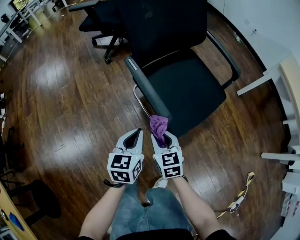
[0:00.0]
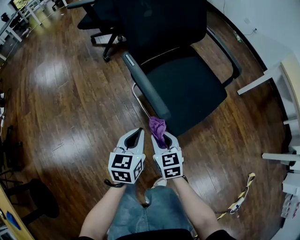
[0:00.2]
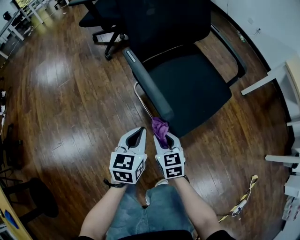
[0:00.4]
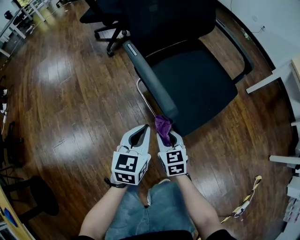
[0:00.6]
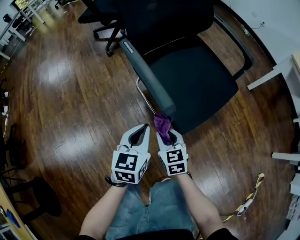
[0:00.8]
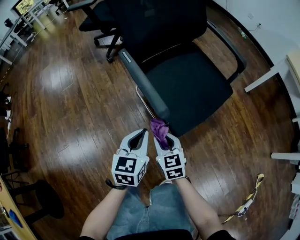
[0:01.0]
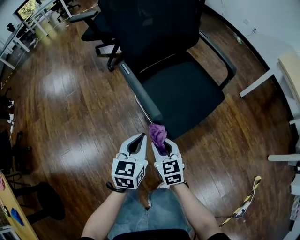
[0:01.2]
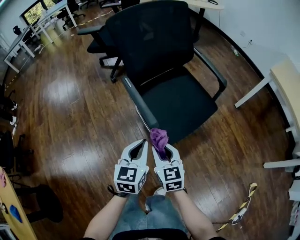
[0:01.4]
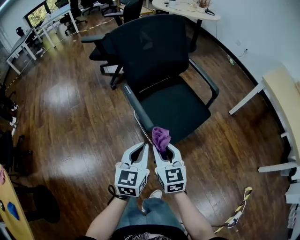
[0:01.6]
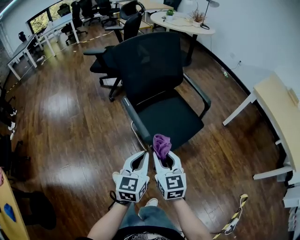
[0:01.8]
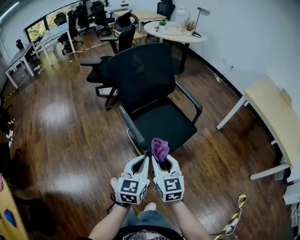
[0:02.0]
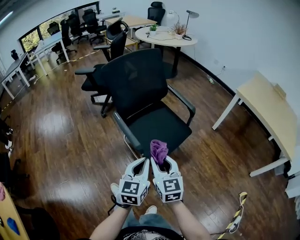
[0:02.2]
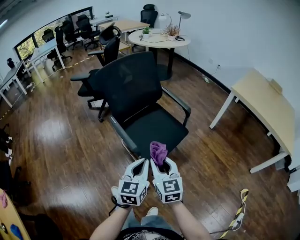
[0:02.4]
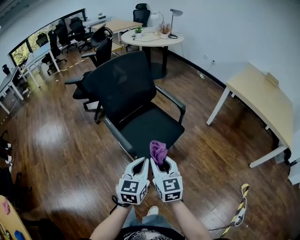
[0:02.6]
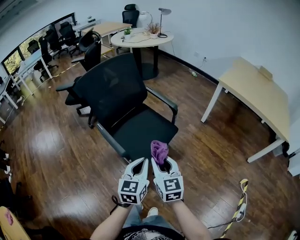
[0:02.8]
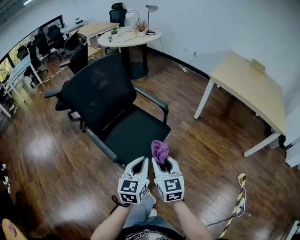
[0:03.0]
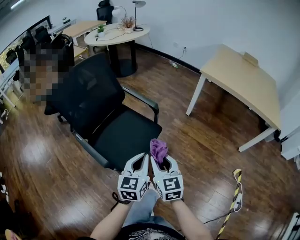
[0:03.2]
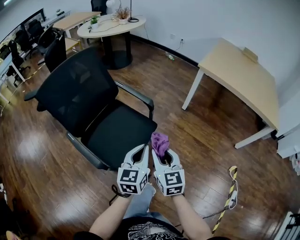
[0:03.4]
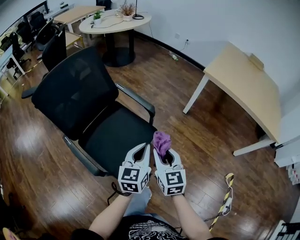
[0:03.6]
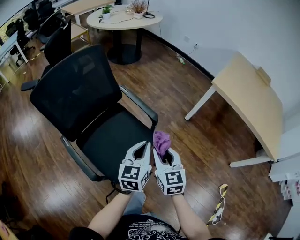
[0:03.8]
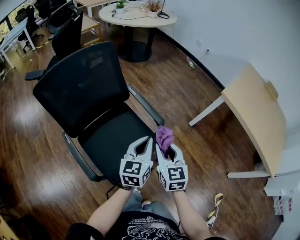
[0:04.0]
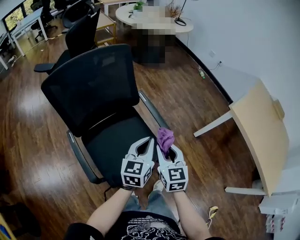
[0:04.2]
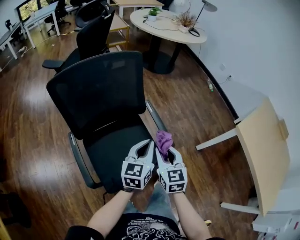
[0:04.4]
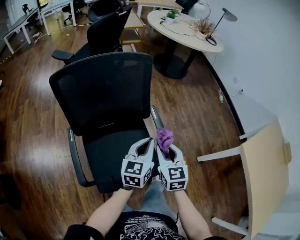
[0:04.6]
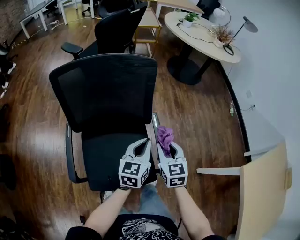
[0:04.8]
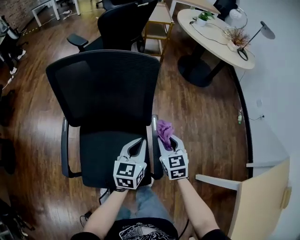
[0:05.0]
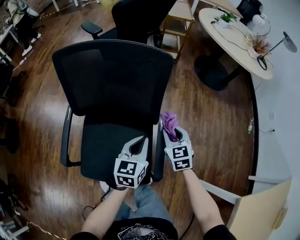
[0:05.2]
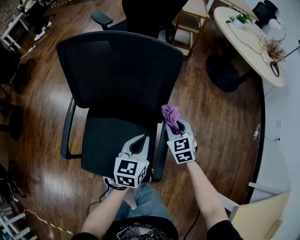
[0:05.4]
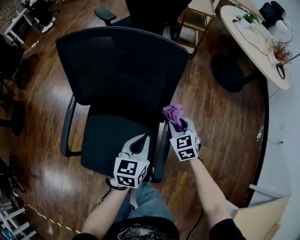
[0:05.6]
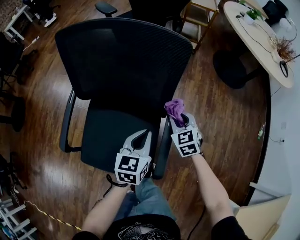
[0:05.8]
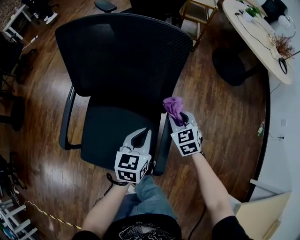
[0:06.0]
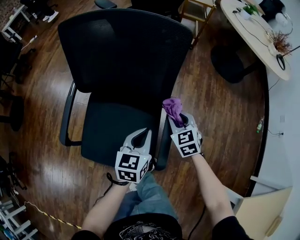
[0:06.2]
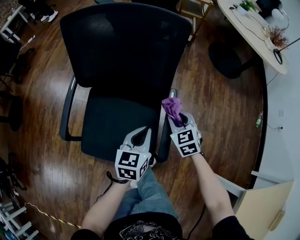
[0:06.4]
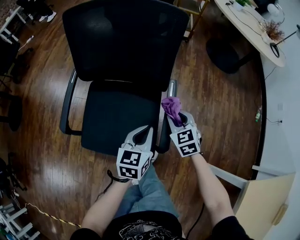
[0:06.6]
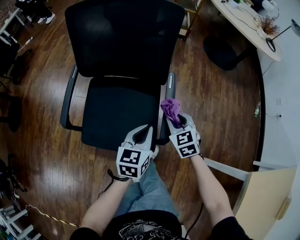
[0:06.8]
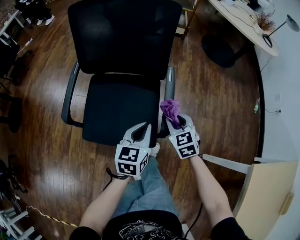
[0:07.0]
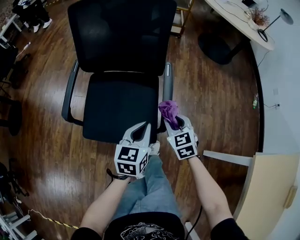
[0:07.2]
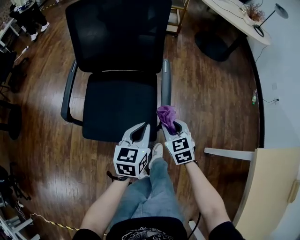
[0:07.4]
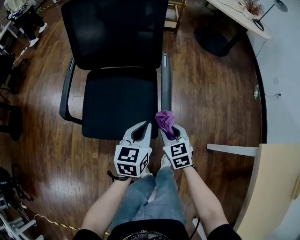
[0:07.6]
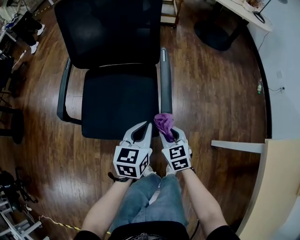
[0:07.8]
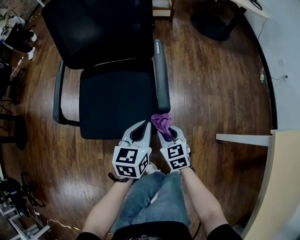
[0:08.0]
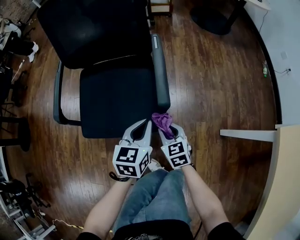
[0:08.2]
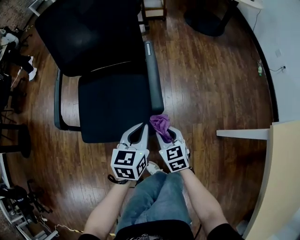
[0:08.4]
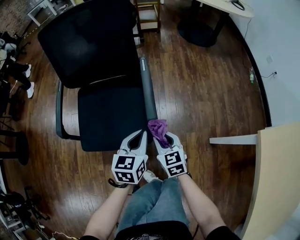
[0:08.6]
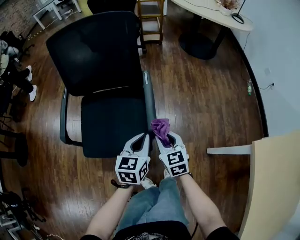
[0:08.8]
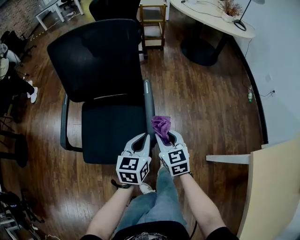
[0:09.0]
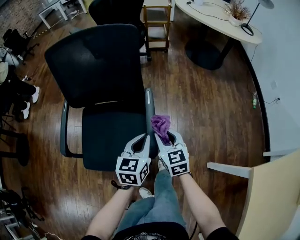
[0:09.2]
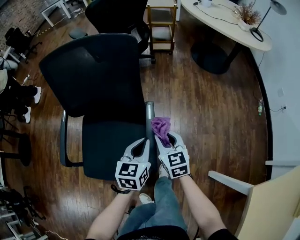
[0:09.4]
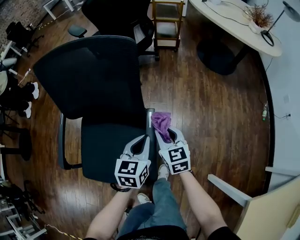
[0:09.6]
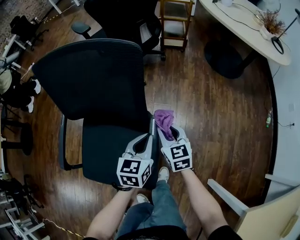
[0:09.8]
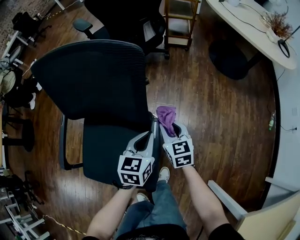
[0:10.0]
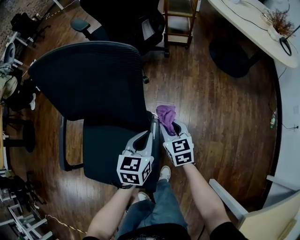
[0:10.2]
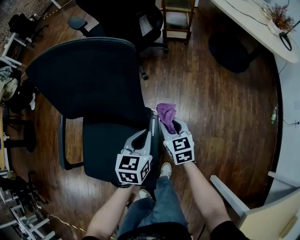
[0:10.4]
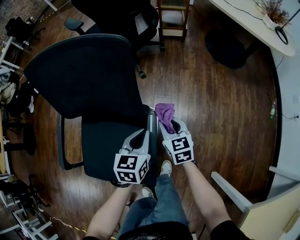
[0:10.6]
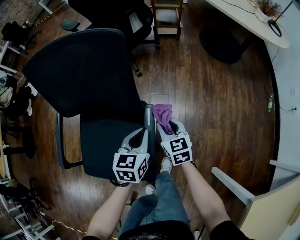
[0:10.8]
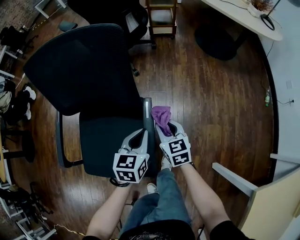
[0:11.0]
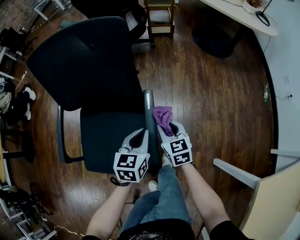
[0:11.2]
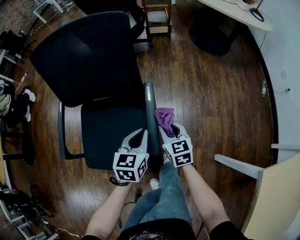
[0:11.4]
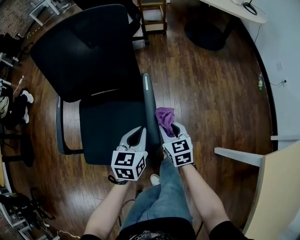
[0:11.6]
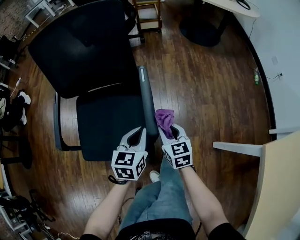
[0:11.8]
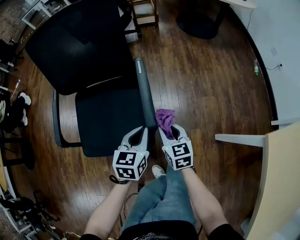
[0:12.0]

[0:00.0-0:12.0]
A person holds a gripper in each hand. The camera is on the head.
0:00.0 to 0:01.6: The left gripper heads upward, to the right and backward, covering approximately 20 cm; the right gripper is displaced upward by some 20 cm.
0:01.6 to 0:03.0: The left gripper shifts about 20 cm to the right; the right gripper heads to the right and upward, covering about 20 cm, and changes its angle by roughly 20 degrees.
0:03.0 to 0:04.4: The two grippers go roughly 35 cm forward. The left gripper swivels roughly 20 degrees. Meanwhile the right gripper changes its angle by about 20 degrees.
0:04.4 to 0:06.0: The right gripper moves roughly 35 cm, and rotates roughly 50 degrees; the left gripper shifts by about 20 cm, and rotates about 40 degrees.
0:06.0 to 0:07.6: Both grippers move backward, some 25 cm.
0:07.6 to 0:09.0: The left gripper goes some 5 cm to the right, and moves about 5 cm downward and comes back. The right gripper moves upward and forward, some 10 cm.
0:09.0 to 0:10.4: The grippers both shift forward by approximately 25 cm.
0:10.4 to 0:12.0: Both grippers move backward, approximately 30 cm.

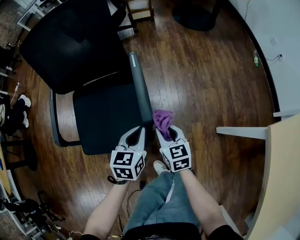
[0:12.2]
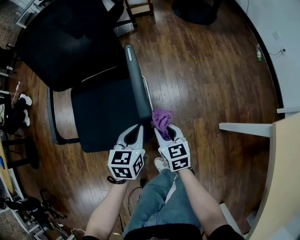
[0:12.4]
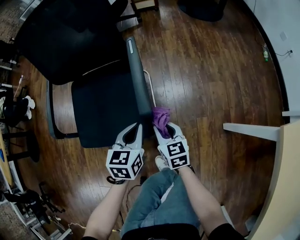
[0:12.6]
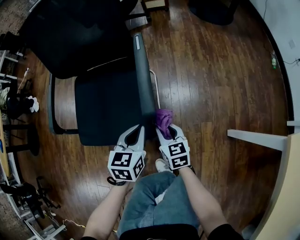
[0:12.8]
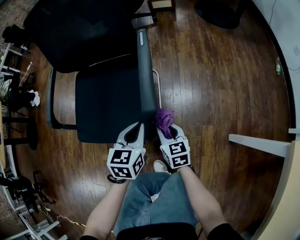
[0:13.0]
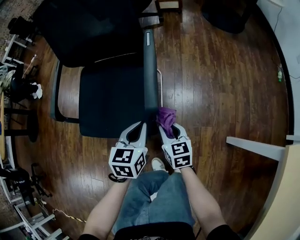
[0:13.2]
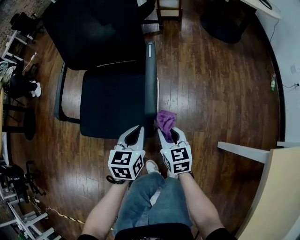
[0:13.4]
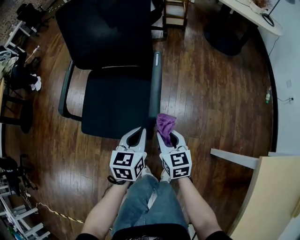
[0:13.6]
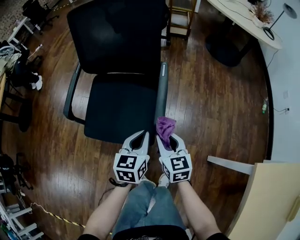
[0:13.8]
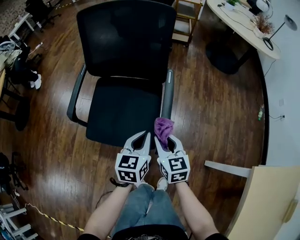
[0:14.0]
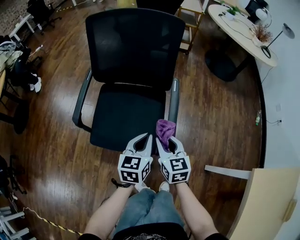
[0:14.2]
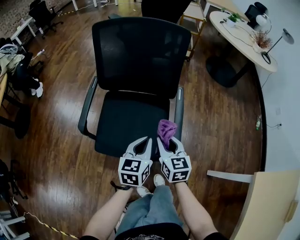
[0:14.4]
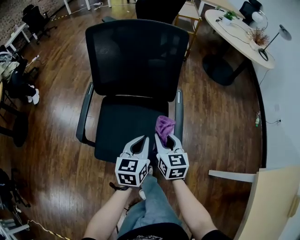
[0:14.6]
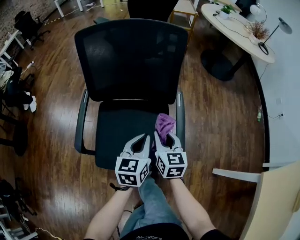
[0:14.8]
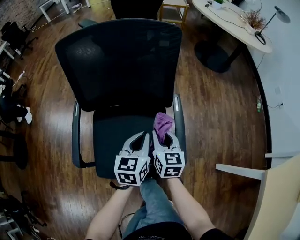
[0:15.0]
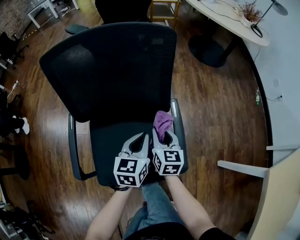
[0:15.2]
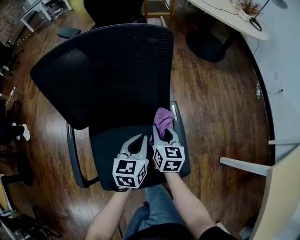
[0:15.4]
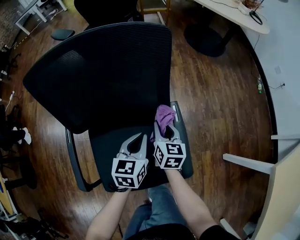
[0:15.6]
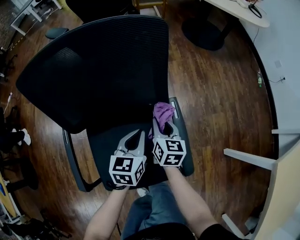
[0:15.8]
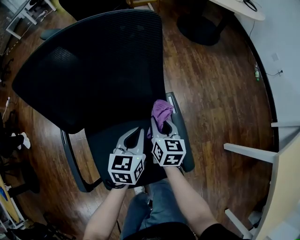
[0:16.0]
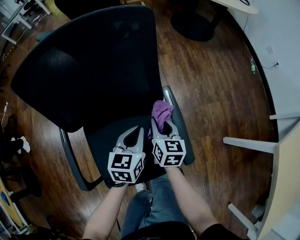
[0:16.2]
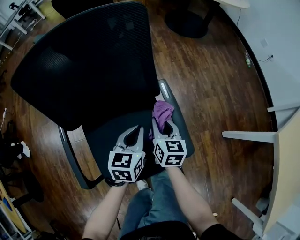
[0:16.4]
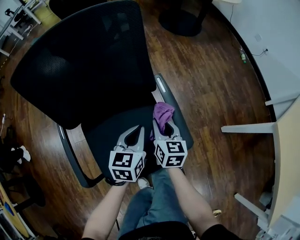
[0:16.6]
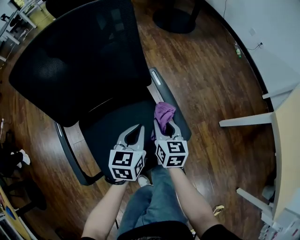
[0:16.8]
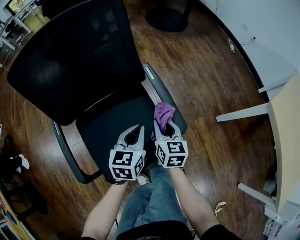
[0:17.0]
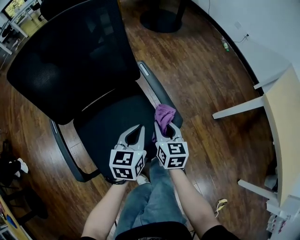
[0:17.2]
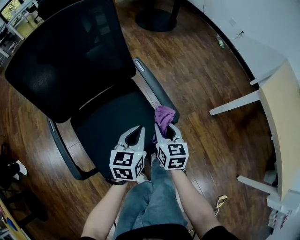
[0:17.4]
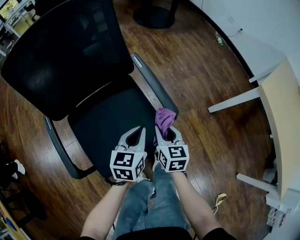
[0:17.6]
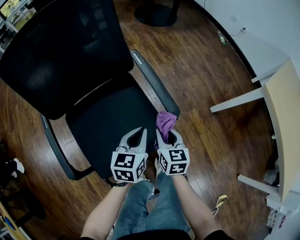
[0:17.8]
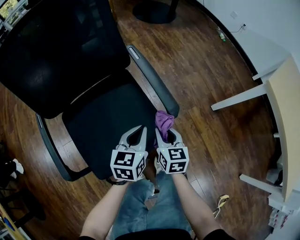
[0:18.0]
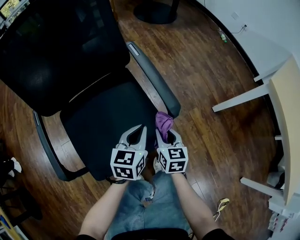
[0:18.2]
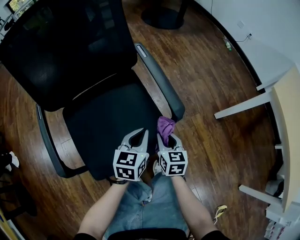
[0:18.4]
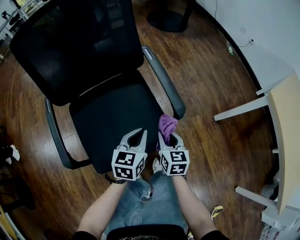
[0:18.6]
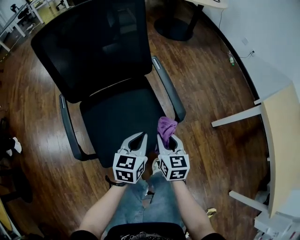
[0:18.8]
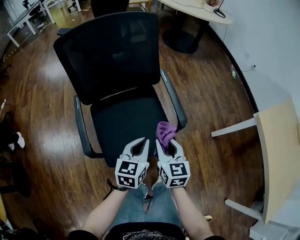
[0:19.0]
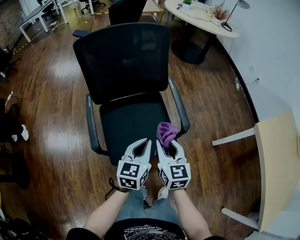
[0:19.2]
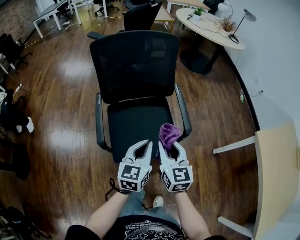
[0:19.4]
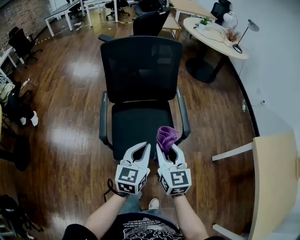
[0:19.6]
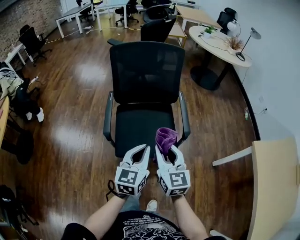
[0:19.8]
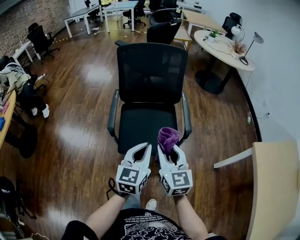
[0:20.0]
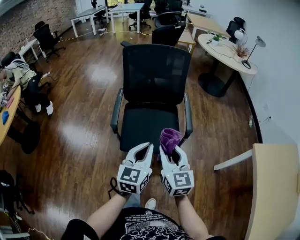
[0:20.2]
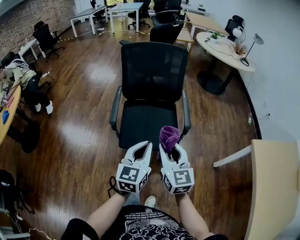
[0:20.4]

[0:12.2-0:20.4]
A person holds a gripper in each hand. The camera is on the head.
0:12.2 to 0:13.8: The right gripper heads upward, covering some 10 cm.
0:13.8 to 0:15.4: The right gripper is displaced forward by roughly 30 cm, and turns by some 30 degrees. Meanwhile the left gripper shifts some 25 cm forward and to the left.
0:15.4 to 0:17.2: The grippers both shift backward and to the right by about 15 cm. The left gripper turns by about 20 degrees.
0:17.2 to 0:18.8: Both grippers travel together backward, approximately 10 cm. The right gripper reaches approximately 15 cm downward, then returns, while the left gripper reaches roughly 10 cm downward, then returns.
0:18.8 to 0:20.4: The two grippers go approximately 25 cm upward. The right gripper rotates some 40 degrees. Meanwhile the left gripper changes its angle by approximately 30 degrees.

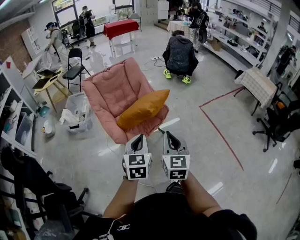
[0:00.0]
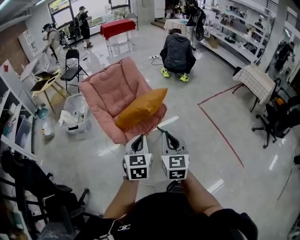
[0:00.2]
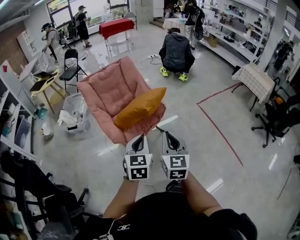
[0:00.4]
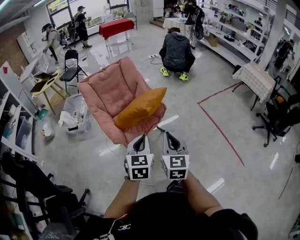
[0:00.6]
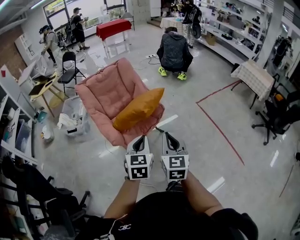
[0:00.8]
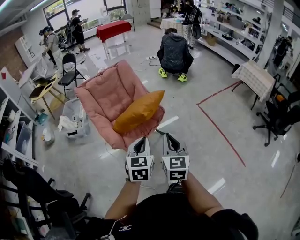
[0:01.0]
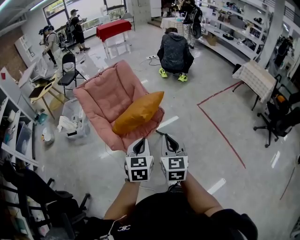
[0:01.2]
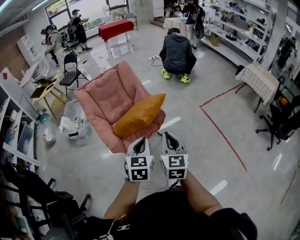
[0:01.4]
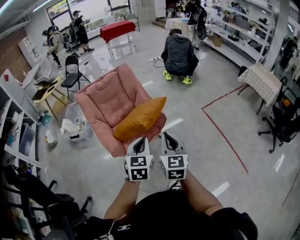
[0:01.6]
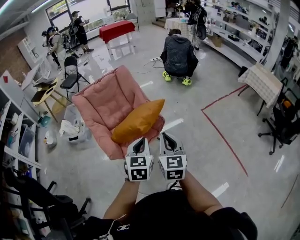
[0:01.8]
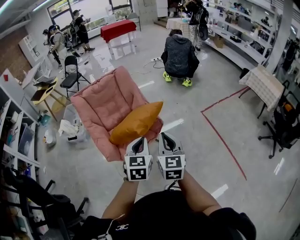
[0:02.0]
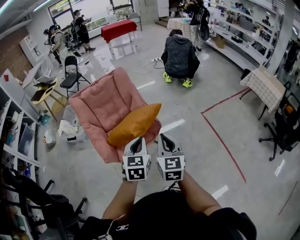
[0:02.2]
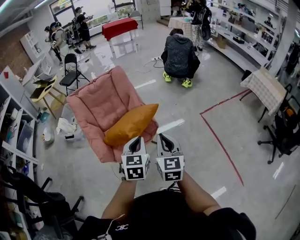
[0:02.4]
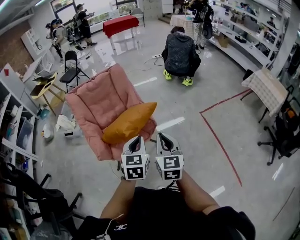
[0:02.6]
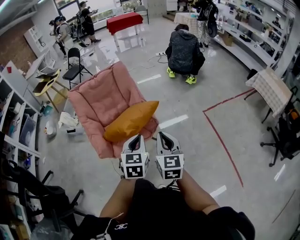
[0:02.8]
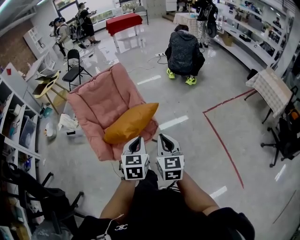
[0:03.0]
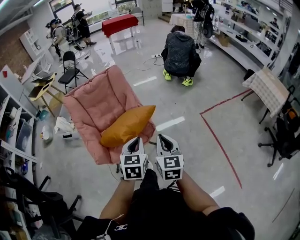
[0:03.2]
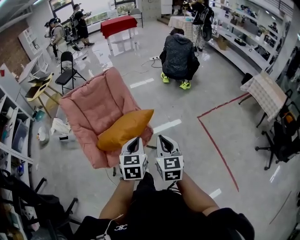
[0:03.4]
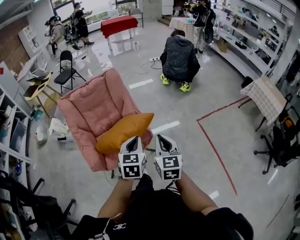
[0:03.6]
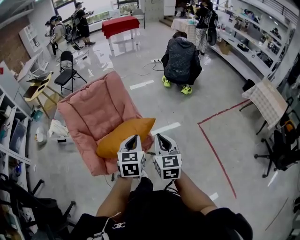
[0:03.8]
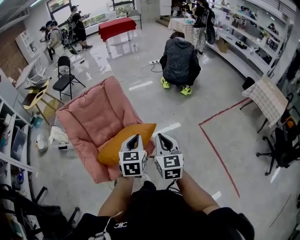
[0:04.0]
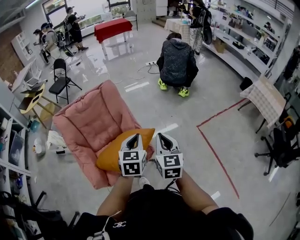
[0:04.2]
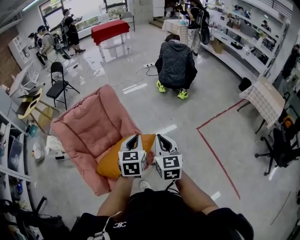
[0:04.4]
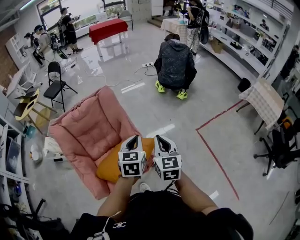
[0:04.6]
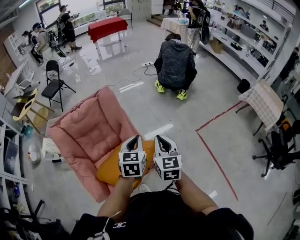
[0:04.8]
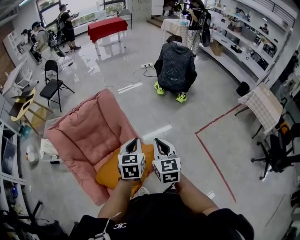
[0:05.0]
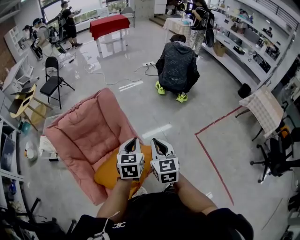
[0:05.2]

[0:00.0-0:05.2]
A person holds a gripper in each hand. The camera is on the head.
0:00.0 to 0:01.8: The grippers both shift forward and to the right by some 15 cm.
0:01.8 to 0:03.4: The grippers both shift forward and to the right by approximately 15 cm.
0:03.4 to 0:05.2: Both grippers travel together forward, about 30 cm.
